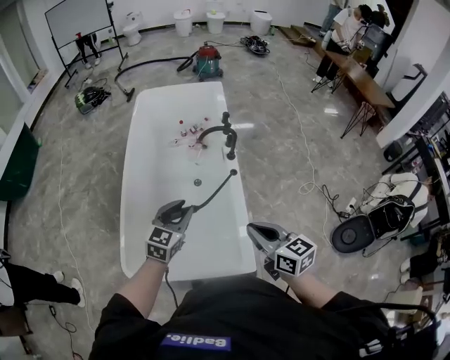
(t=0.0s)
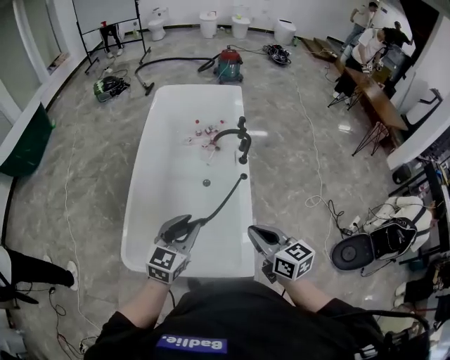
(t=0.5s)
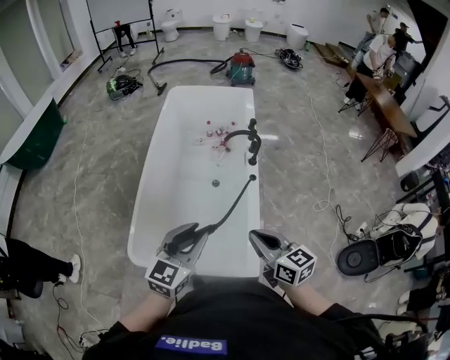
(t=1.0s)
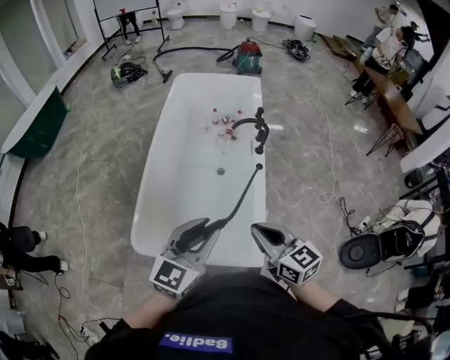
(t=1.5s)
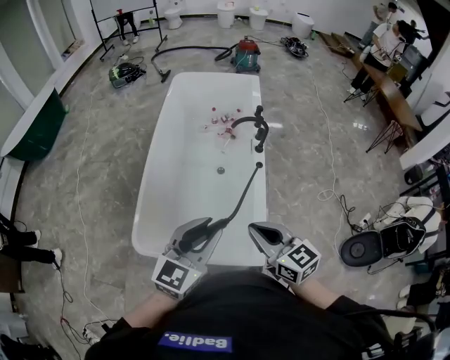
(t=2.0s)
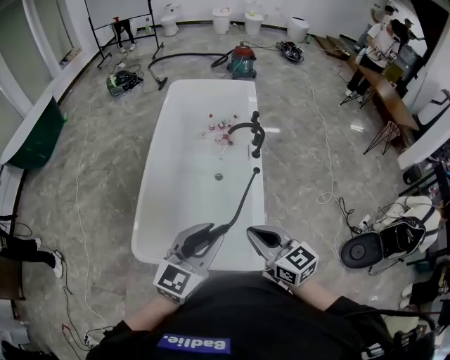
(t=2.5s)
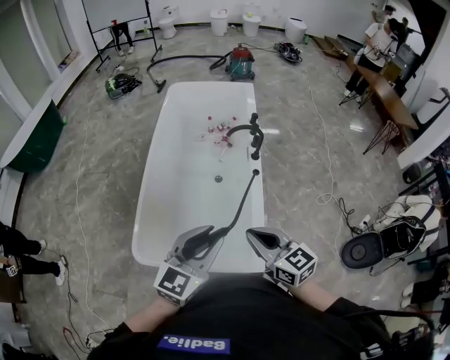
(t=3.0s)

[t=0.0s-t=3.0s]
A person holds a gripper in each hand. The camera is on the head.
t=0.0s to t=1.5s: The left gripper moves backward and upward, about 20 cm. Meanwhile the right gripper is displaced to the left by some 5 cm.
t=1.5s to t=3.0s: The grippers stay close to where they were, moving slightly.

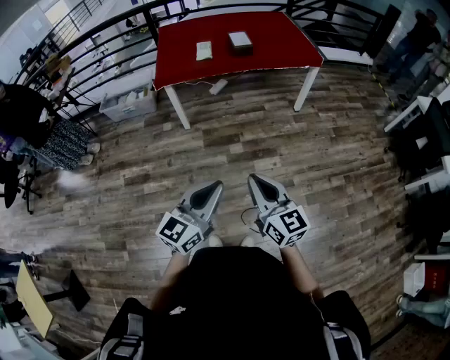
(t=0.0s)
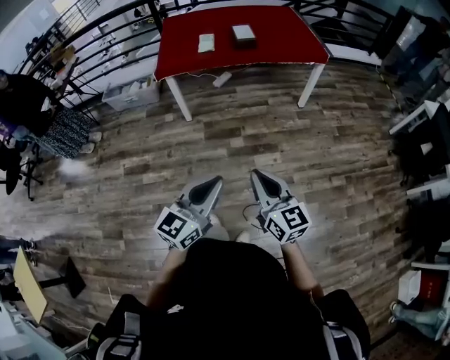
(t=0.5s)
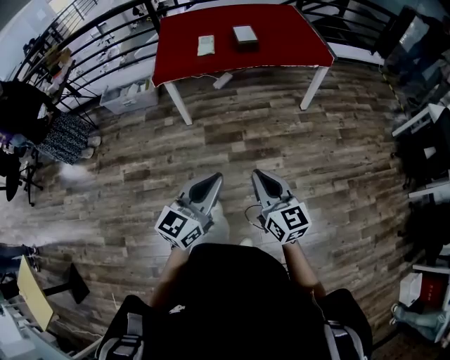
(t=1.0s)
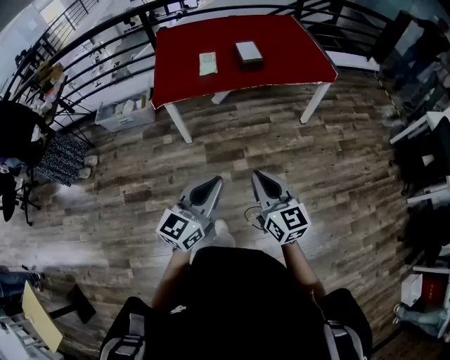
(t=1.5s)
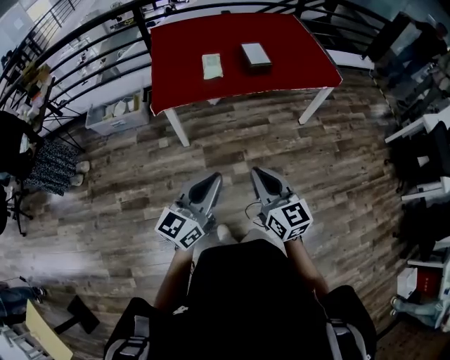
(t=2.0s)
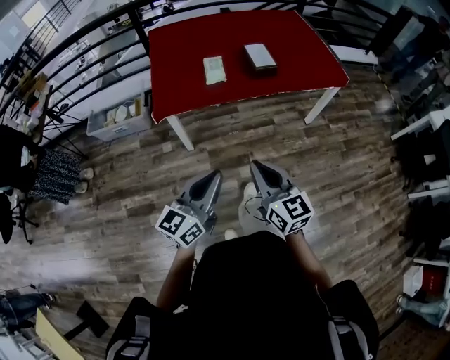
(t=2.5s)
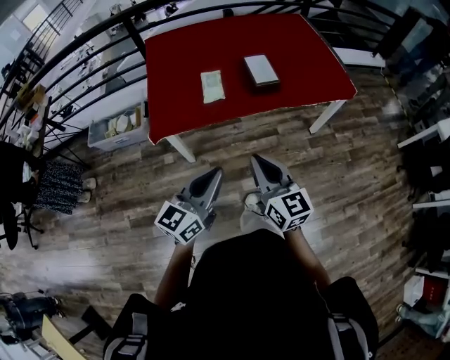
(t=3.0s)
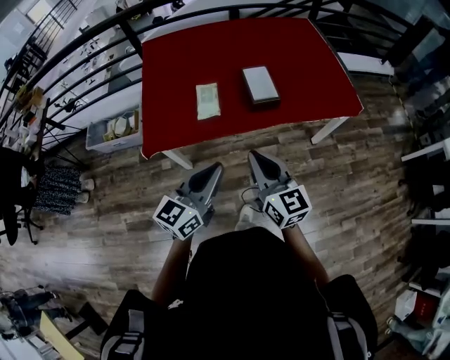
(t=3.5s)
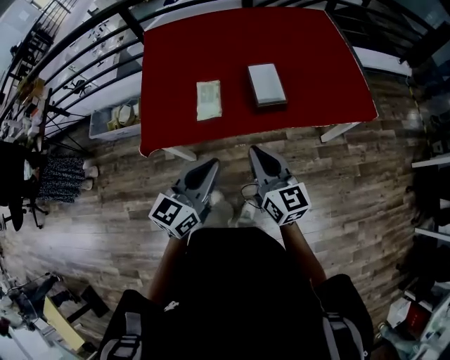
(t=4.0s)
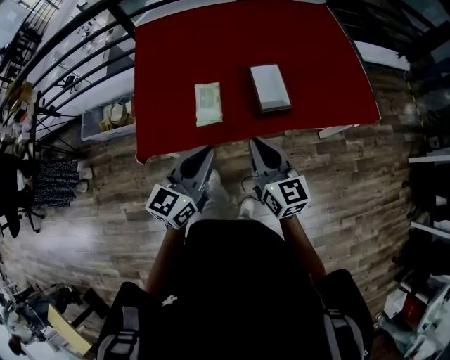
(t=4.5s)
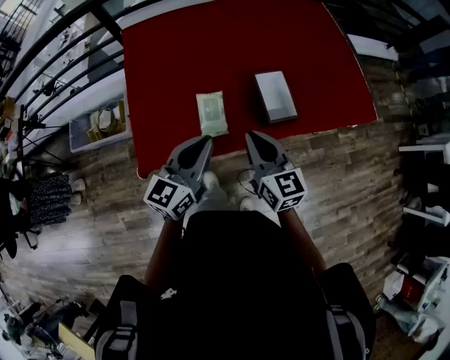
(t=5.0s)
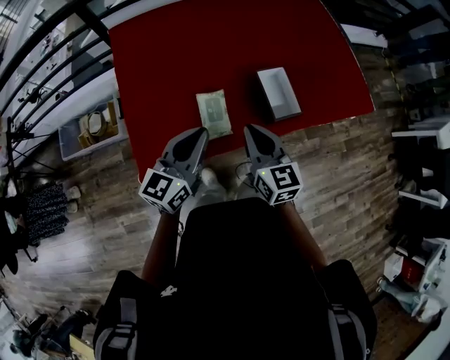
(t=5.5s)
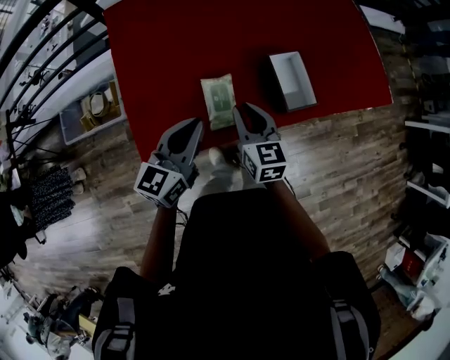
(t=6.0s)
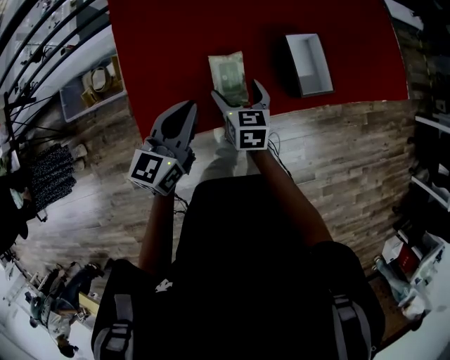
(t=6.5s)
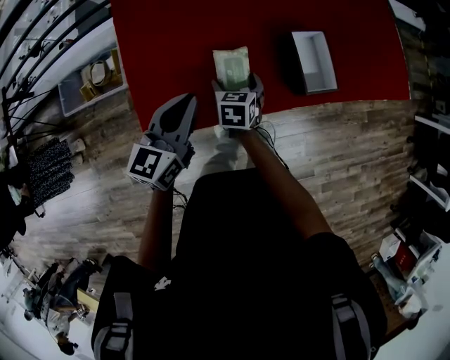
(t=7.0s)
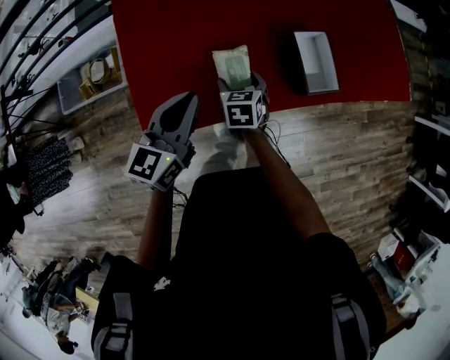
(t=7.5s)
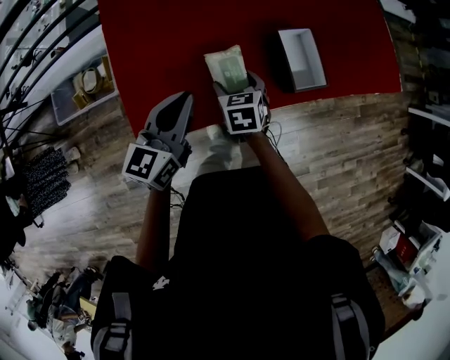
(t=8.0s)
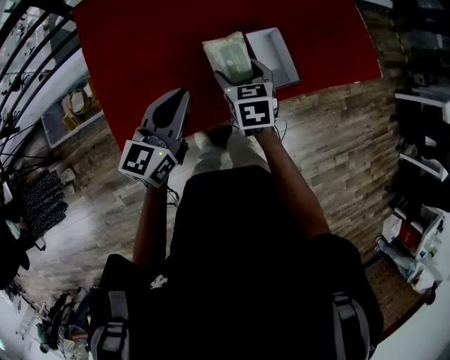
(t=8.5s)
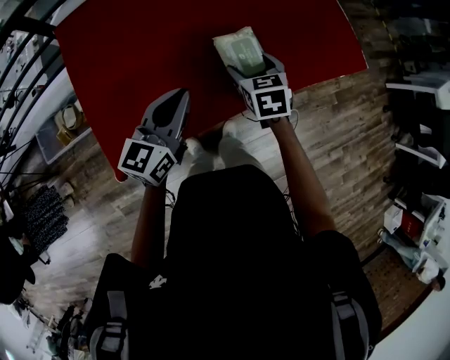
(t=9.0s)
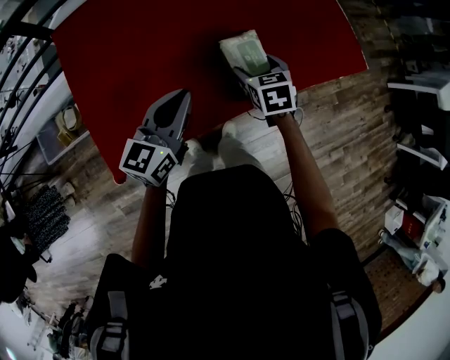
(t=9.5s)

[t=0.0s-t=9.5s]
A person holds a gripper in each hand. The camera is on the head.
t=0.0s to t=2.0s: Both grippers move forward and to the left, approximately 35 cm.
t=2.0s to t=4.0s: The pair of grippers is taken forward, approximately 40 cm.
t=4.0s to t=5.5s: The grippers both shift forward and to the left by approximately 25 cm.
t=5.5s to t=7.5s: The left gripper is displaced downward and to the left by approximately 10 cm. The right gripper goes approximately 25 cm downward and to the left, angles its fingers downward, by some 40 degrees, and opens its fingers.
t=7.5s to t=9.5s: Both grippers travel together to the right and forward, about 20 cm.

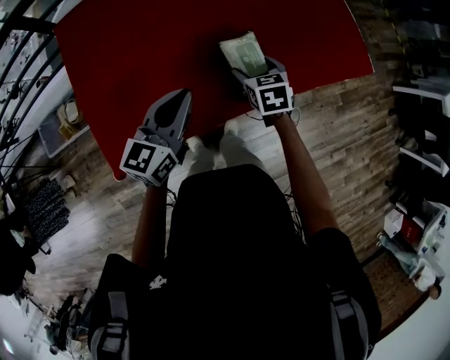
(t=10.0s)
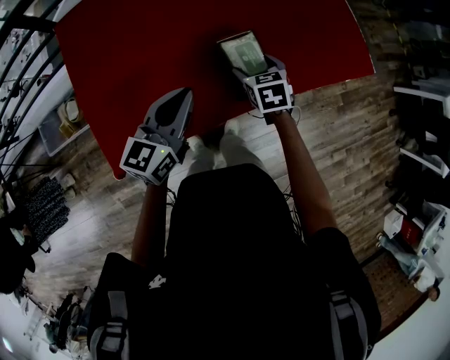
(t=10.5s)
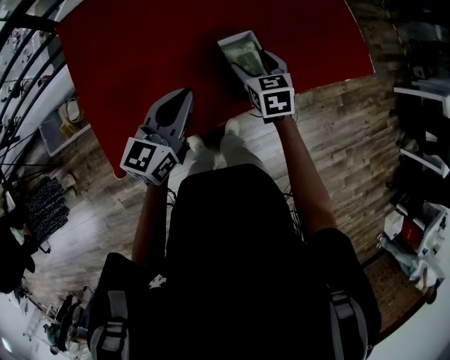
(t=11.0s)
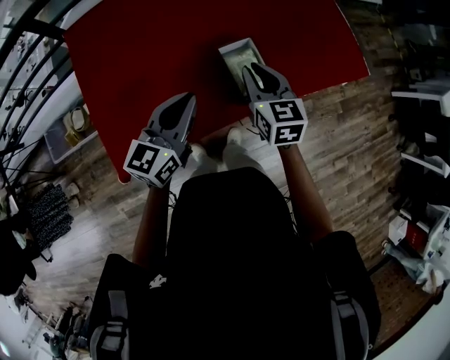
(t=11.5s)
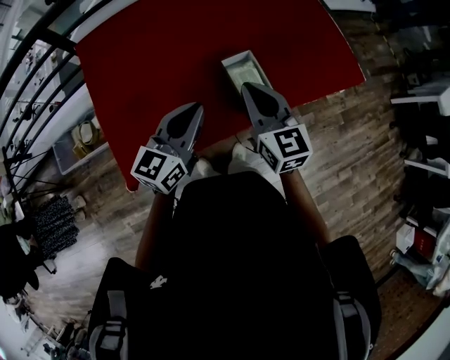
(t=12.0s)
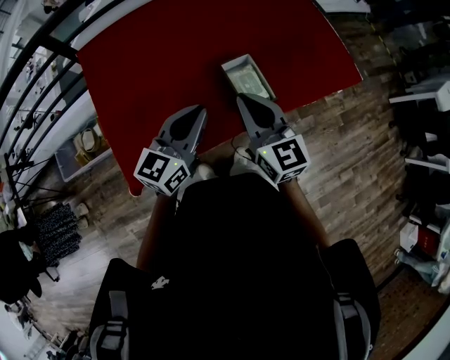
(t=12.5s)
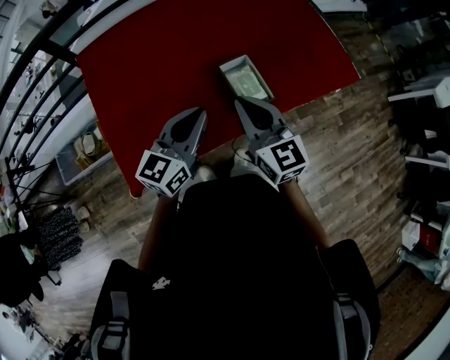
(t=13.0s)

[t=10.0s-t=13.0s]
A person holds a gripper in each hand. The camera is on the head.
t=10.0s to t=11.5s: The right gripper goes roughly 10 cm upward, turns by some 20 degrees, and closes up.
t=11.5s to t=13.0s: The left gripper changes place by some 5 cm. Meanwhile the right gripper goes some 15 cm backward and upward, and turns by approximately 20 degrees.

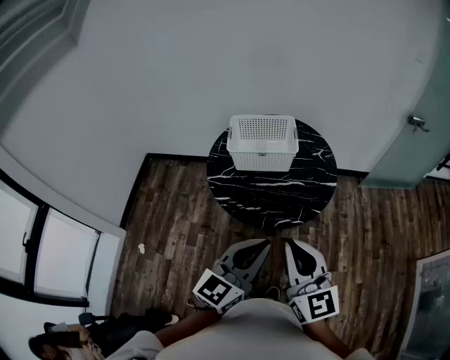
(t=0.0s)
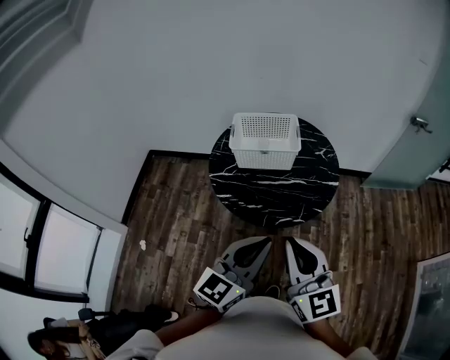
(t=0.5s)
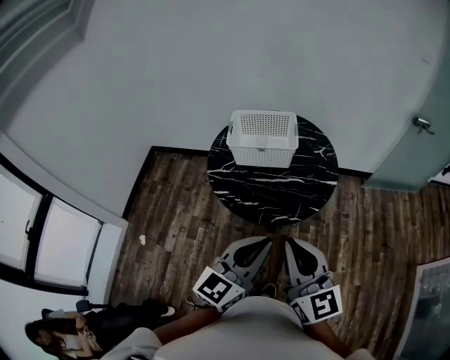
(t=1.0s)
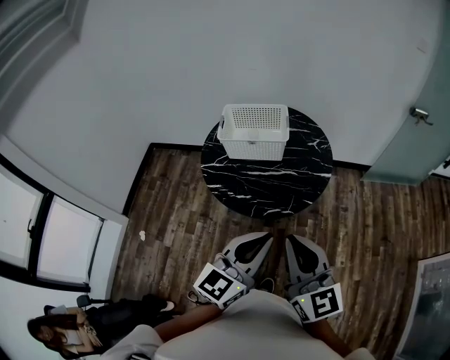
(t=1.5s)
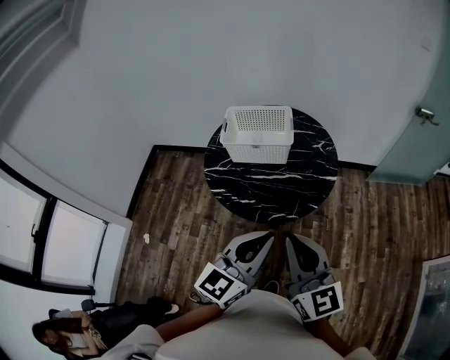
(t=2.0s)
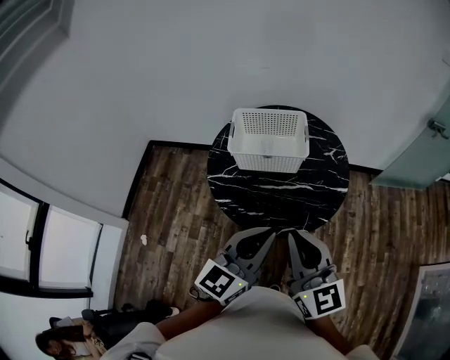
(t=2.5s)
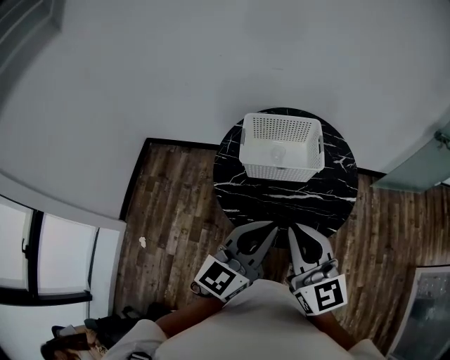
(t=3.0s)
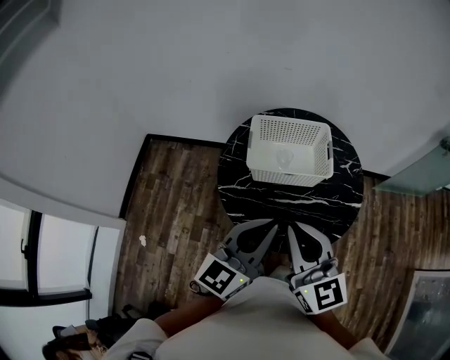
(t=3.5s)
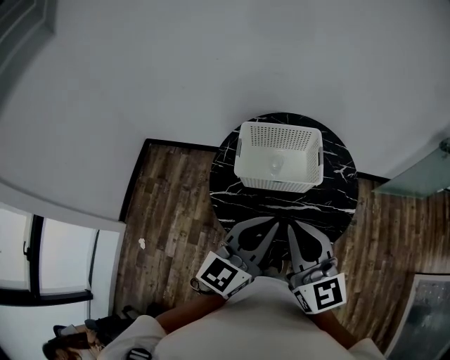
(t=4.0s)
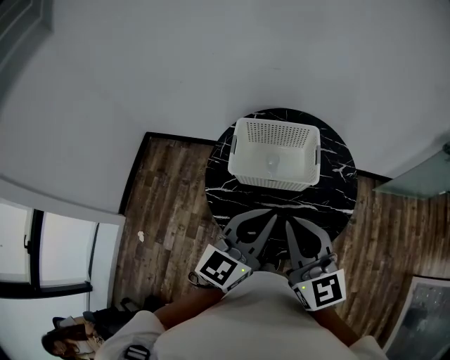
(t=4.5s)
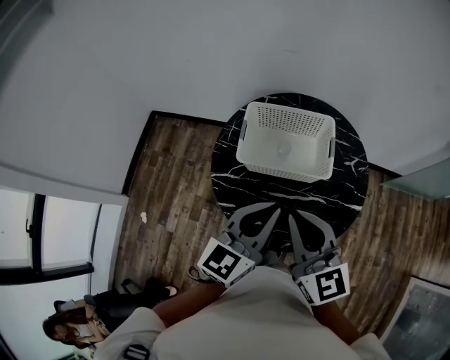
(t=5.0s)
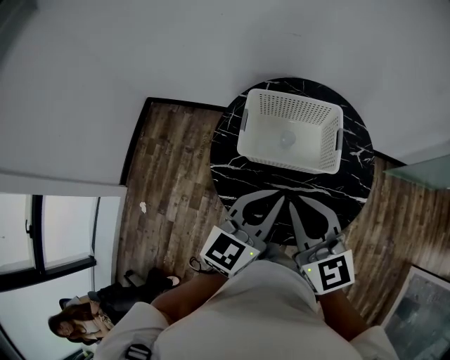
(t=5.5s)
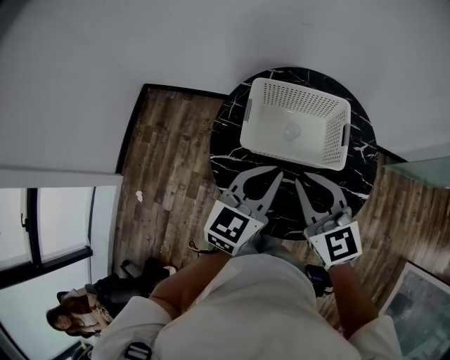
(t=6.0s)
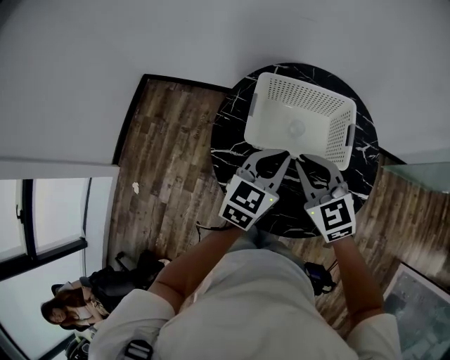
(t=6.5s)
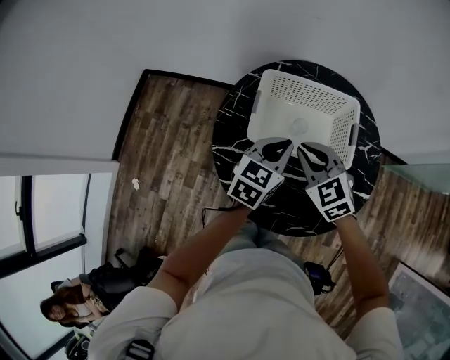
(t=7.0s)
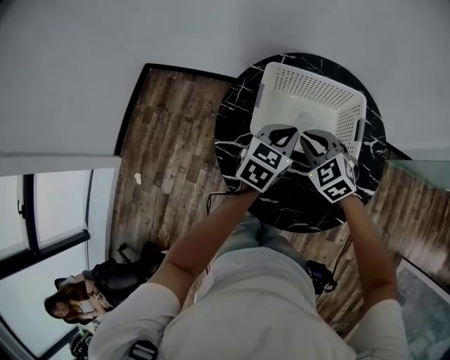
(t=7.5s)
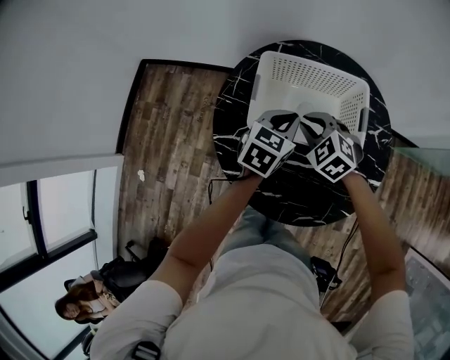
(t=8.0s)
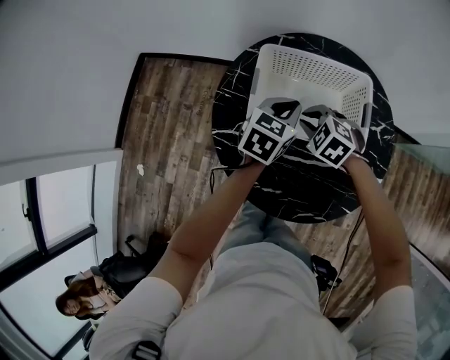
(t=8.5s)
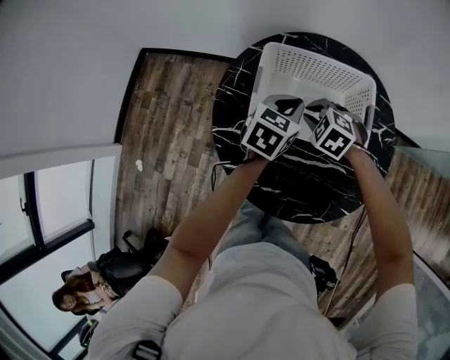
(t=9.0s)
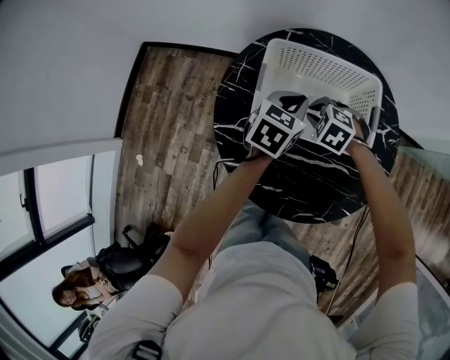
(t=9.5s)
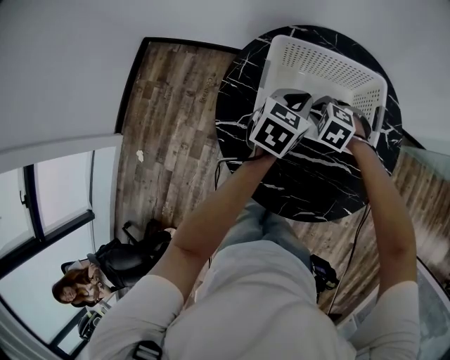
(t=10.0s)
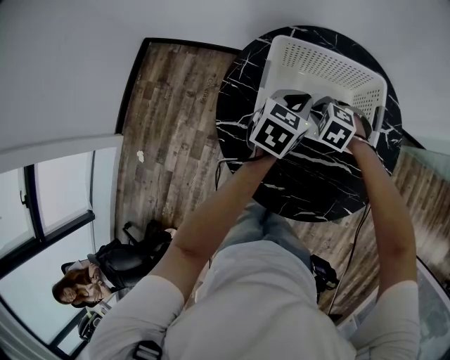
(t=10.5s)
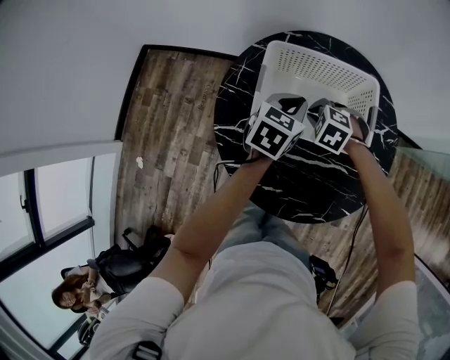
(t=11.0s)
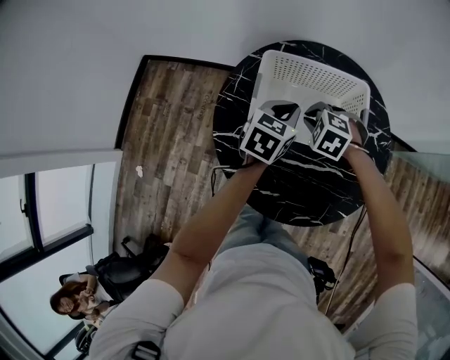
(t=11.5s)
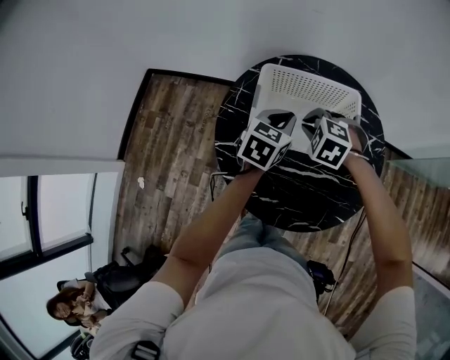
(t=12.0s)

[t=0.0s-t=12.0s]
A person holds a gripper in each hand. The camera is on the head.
t=0.0s to t=2.0s: The two grippers go roughly 10 cm to the right.
t=2.0s to t=4.0s: The two grippers go some 30 cm forward and to the left.
t=4.0s to t=6.0s: The grippers both shift forward and downward by some 15 cm. The right gripper rotates about 20 degrees.
t=6.0s to t=8.0s: The grippers both shift downward and forward by about 20 cm. The right gripper angles its fingers downward, by approximately 30 degrees.
t=8.0s to t=10.0s: The right gripper heads downward, covering about 10 cm, and rotates approximately 20 degrees.
t=10.0s to t=12.0s: The left gripper heads upward, covering about 5 cm, while the right gripper goes some 10 cm upward.
